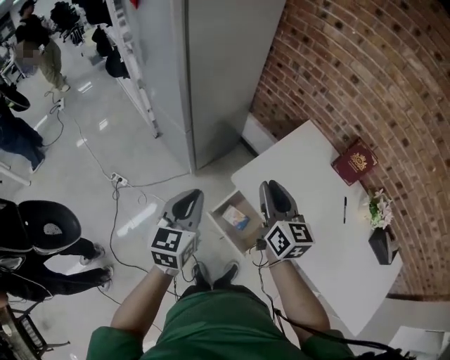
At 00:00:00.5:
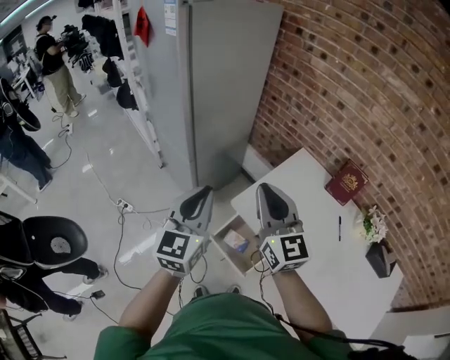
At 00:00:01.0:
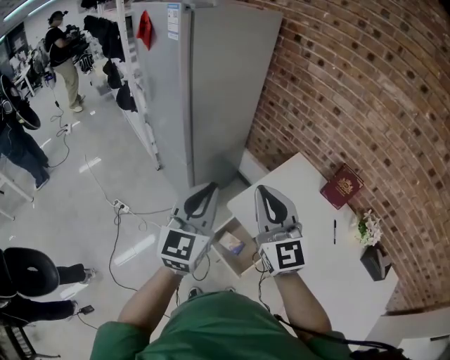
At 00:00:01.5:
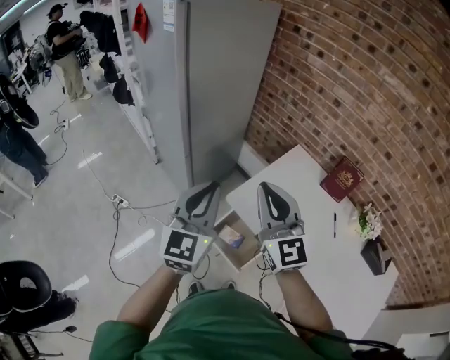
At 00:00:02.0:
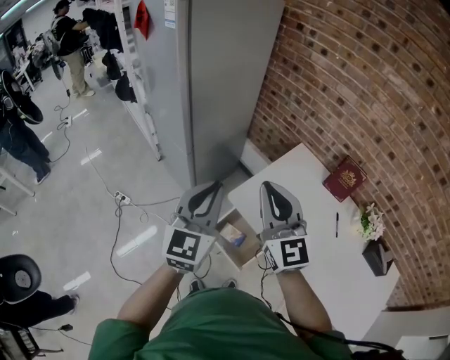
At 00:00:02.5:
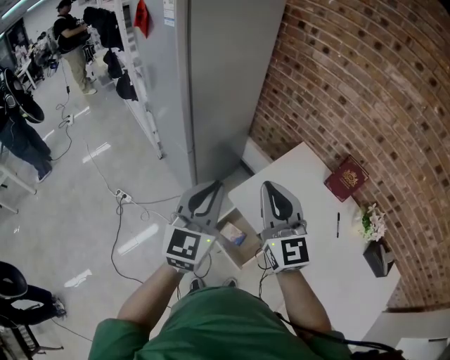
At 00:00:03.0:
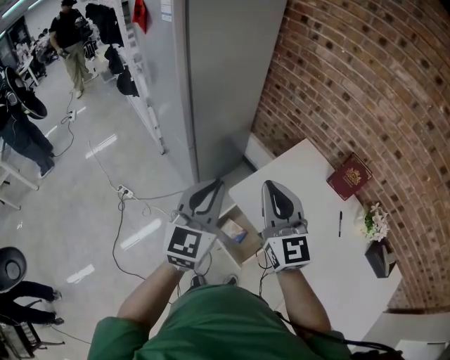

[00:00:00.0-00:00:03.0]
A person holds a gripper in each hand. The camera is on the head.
00:00:00.0 to 00:00:01.5: Both grippers travel together upward, approximately 15 cm. The right gripper turns by some 40 degrees; the left gripper rotates roughly 20 degrees.
00:00:01.5 to 00:00:03.0: The grippers stay close to where they were, moving slightly.

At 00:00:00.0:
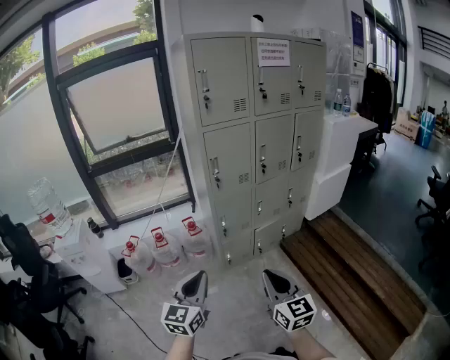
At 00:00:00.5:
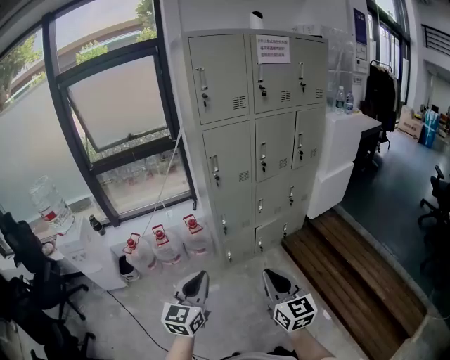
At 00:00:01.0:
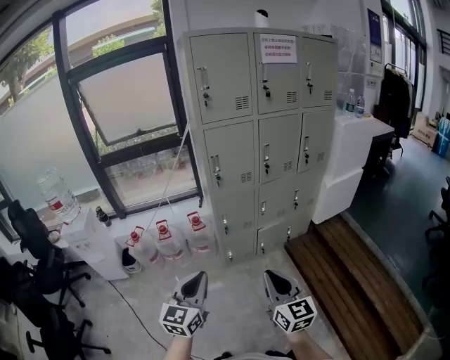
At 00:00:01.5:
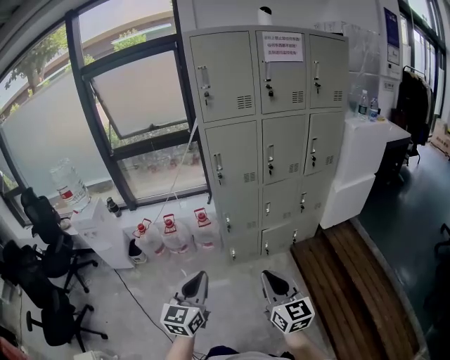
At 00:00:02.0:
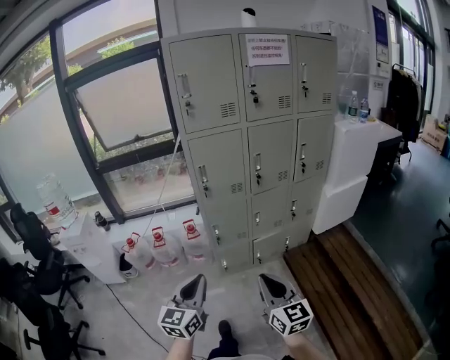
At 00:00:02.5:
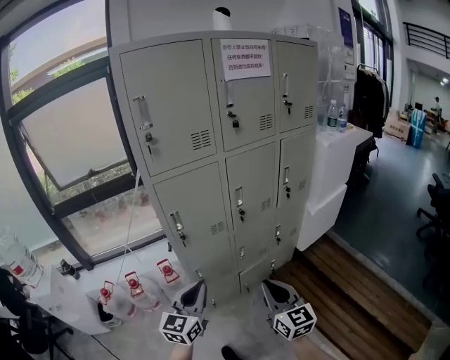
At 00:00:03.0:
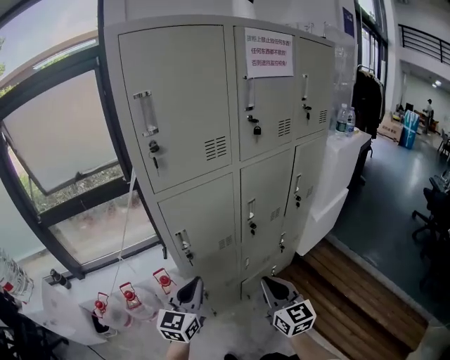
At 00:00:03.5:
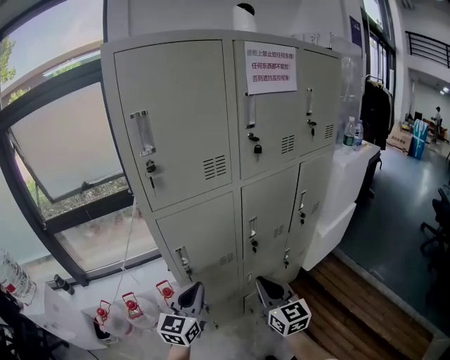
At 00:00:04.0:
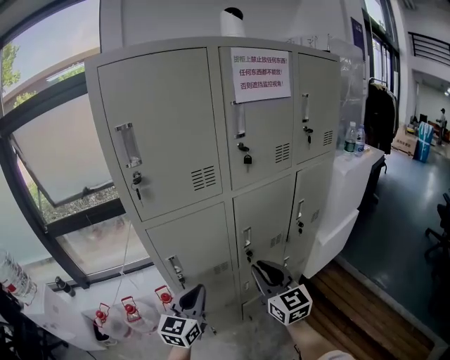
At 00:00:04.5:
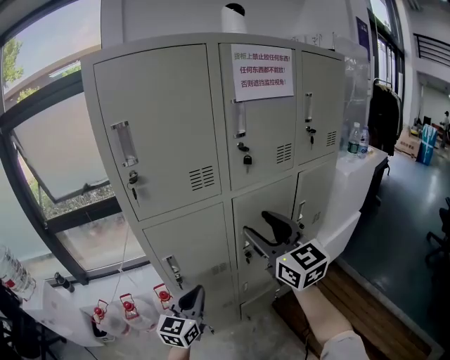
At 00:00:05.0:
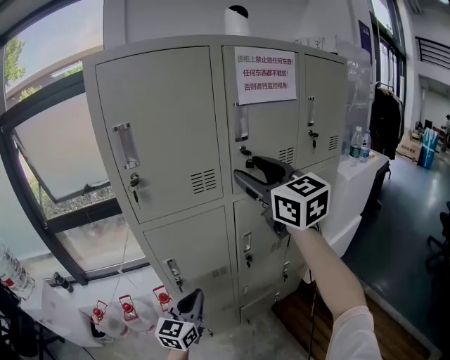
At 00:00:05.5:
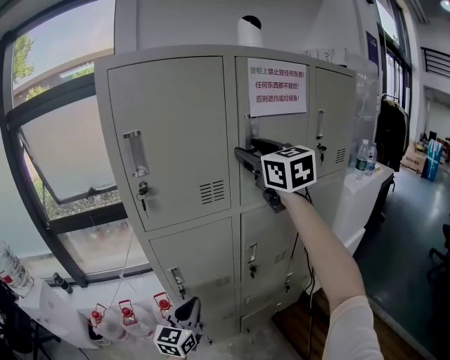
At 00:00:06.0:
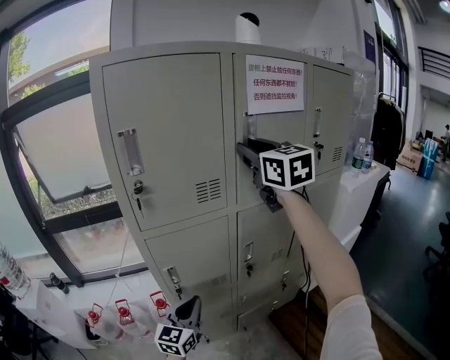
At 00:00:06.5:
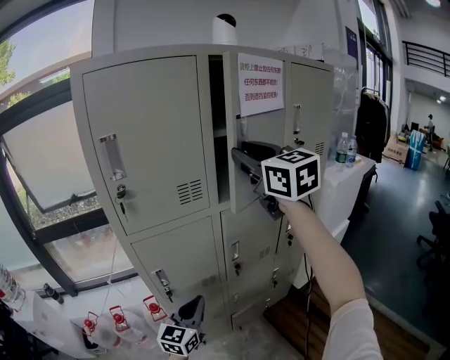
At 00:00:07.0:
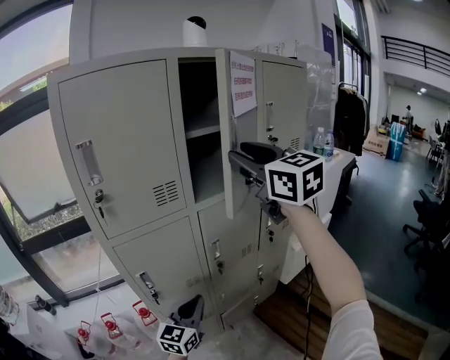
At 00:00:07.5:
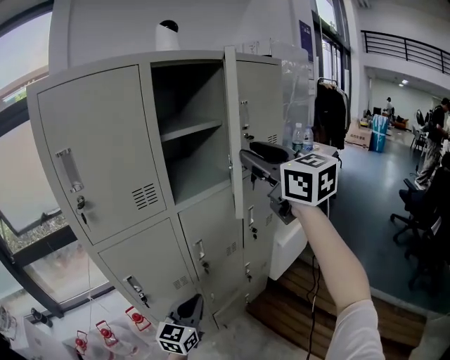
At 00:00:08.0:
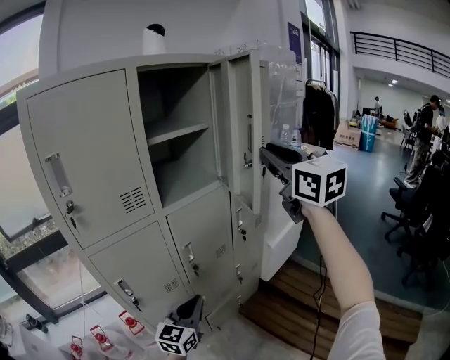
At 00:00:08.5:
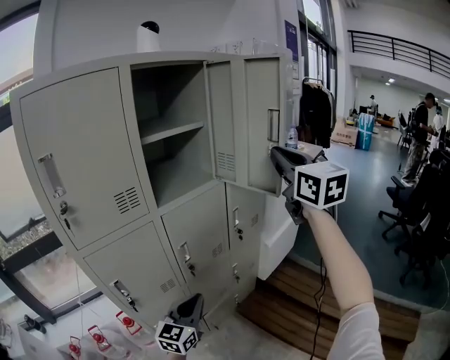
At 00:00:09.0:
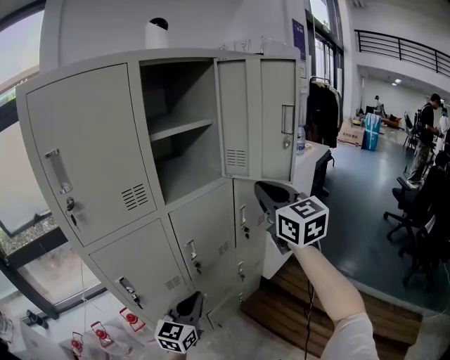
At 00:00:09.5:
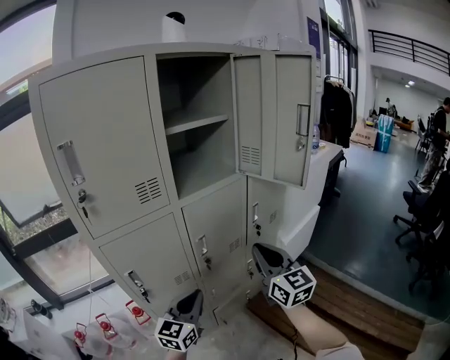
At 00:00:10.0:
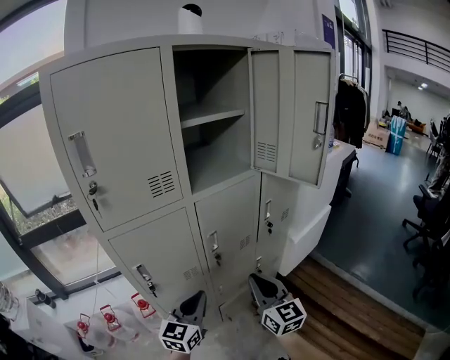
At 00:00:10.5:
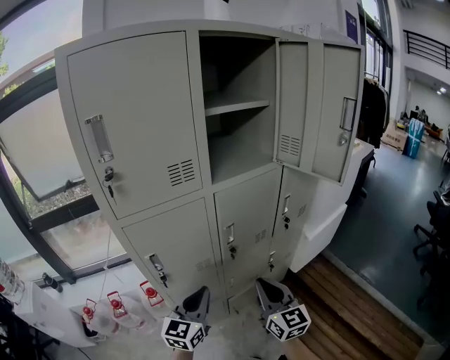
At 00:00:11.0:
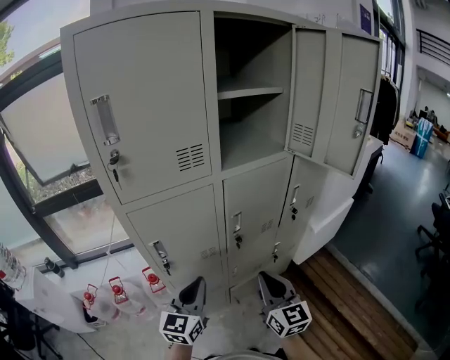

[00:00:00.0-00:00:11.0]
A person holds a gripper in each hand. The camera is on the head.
00:00:00.0 to 00:00:02.0: The left gripper shifts some 15 cm to the right. The right gripper travels to the right and forward by about 15 cm.
00:00:02.0 to 00:00:03.5: The grippers both shift forward by roughly 40 cm.
00:00:03.5 to 00:00:05.5: The right gripper moves upward and forward, roughly 50 cm, and opens up.
00:00:05.5 to 00:00:07.5: The left gripper travels to the right by approximately 15 cm. Meanwhile the right gripper moves to the right and backward, some 20 cm.
00:00:07.5 to 00:00:09.0: The right gripper goes roughly 10 cm downward, and closes.
00:00:09.0 to 00:00:11.0: The right gripper is displaced downward and to the left by about 30 cm; the left gripper shifts approximately 10 cm to the left.

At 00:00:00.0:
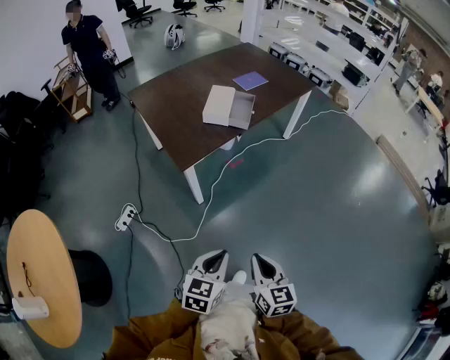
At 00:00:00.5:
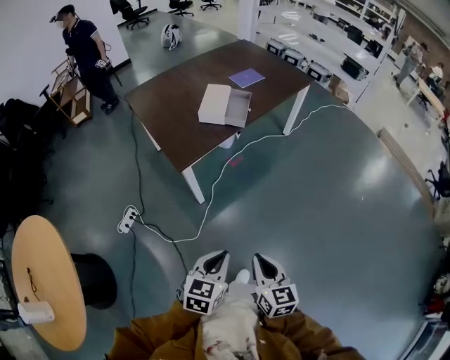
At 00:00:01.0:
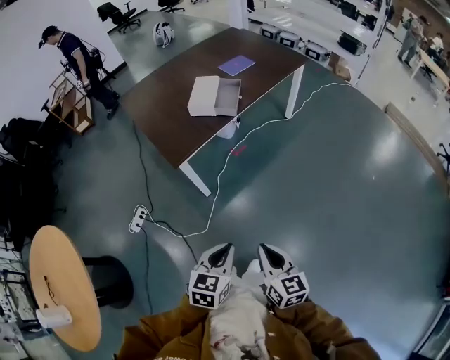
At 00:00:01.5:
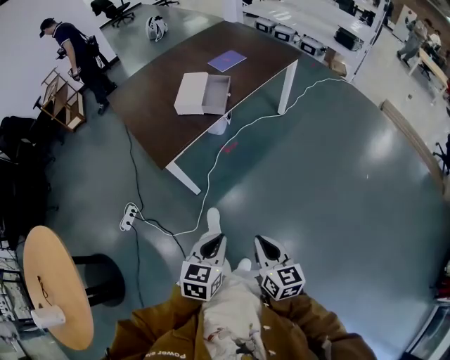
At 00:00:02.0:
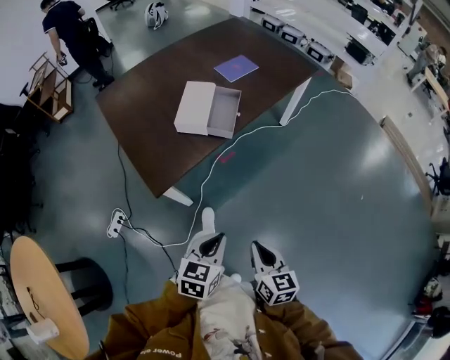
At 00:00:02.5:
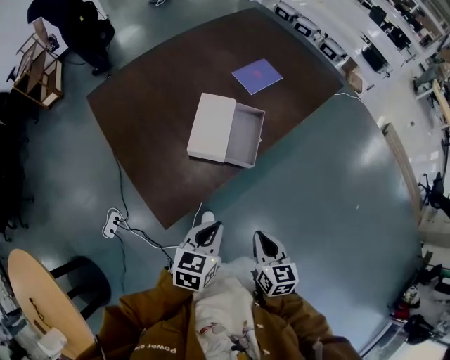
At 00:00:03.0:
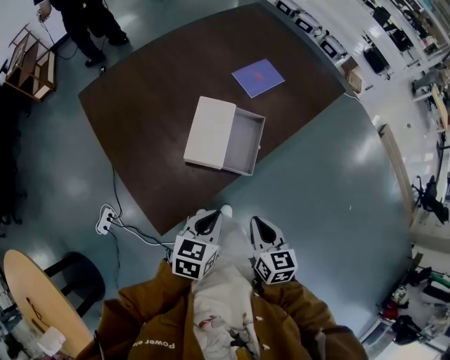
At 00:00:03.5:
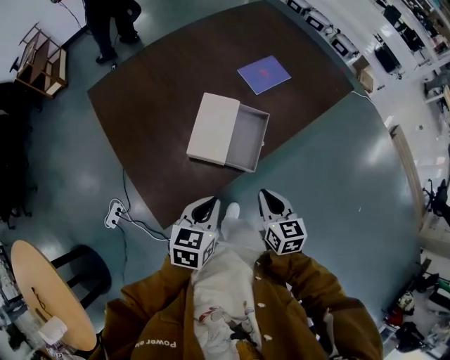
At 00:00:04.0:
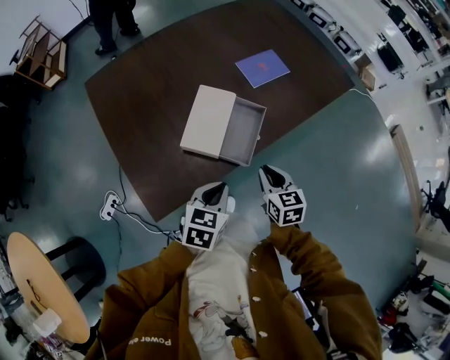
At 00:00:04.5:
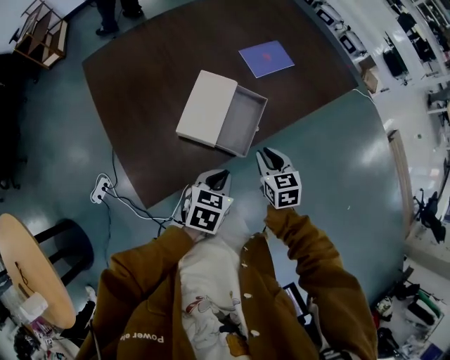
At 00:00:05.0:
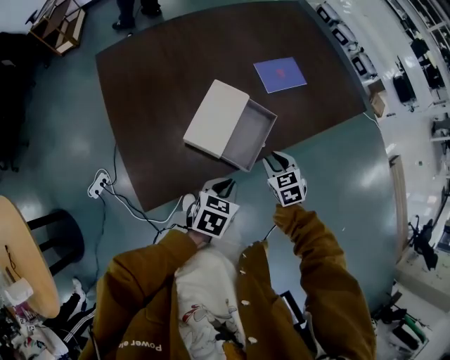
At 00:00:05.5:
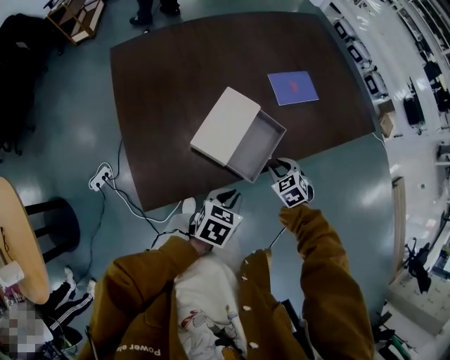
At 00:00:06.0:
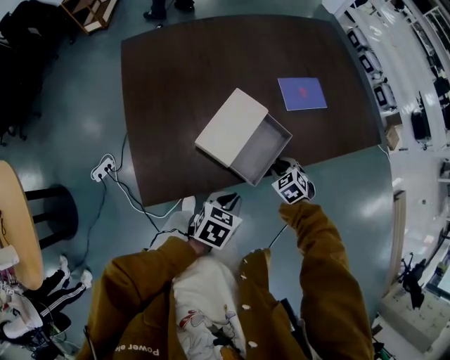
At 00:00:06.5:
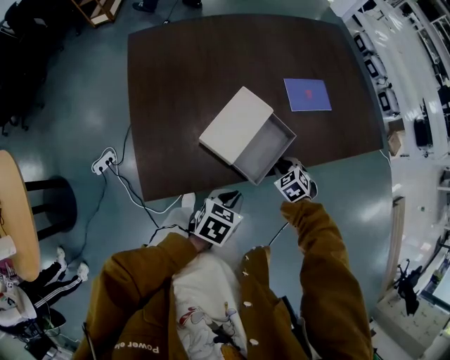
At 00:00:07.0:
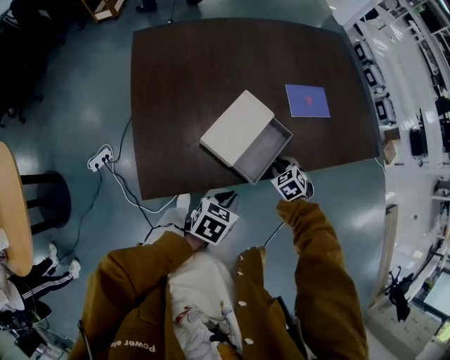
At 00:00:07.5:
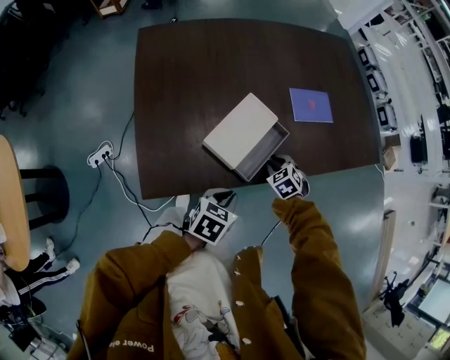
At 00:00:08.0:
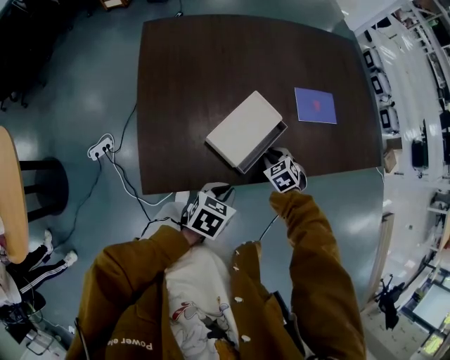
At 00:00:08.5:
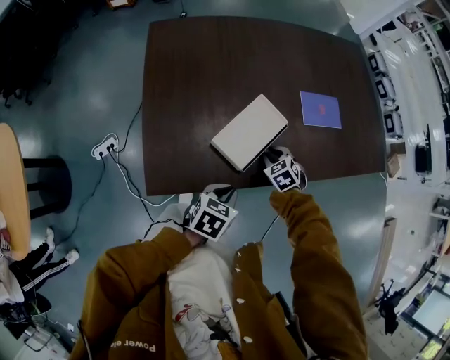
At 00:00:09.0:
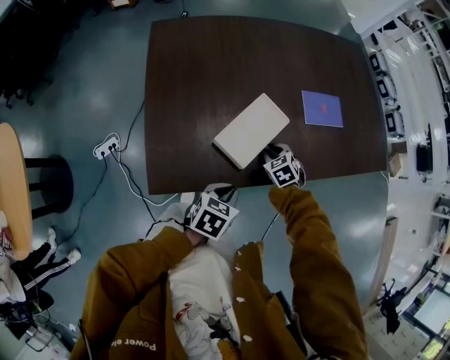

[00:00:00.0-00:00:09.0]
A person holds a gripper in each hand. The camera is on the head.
00:00:00.0 to 00:00:02.0: Both grippers move forward, roughly 25 cm.
00:00:02.0 to 00:00:04.5: Both grippers move forward, roughly 40 cm. The right gripper rotates some 30 degrees.
00:00:04.5 to 00:00:07.0: The right gripper shifts about 15 cm downward and forward, and twists about 40 degrees counterclockwise, seen from behind.
00:00:07.0 to 00:00:09.0: The right gripper shifts roughly 10 cm to the left.

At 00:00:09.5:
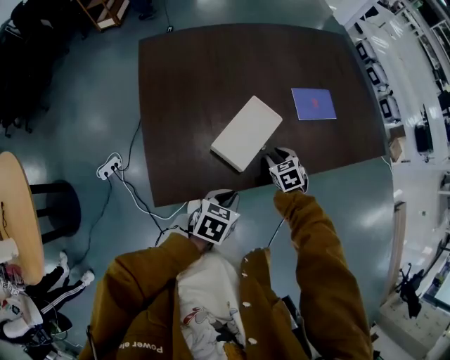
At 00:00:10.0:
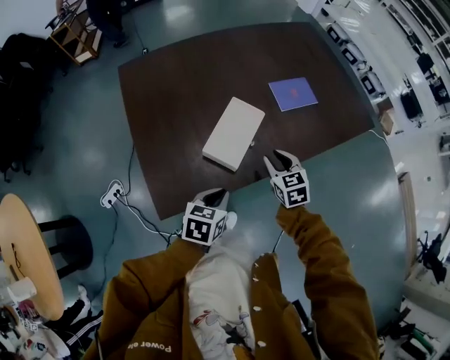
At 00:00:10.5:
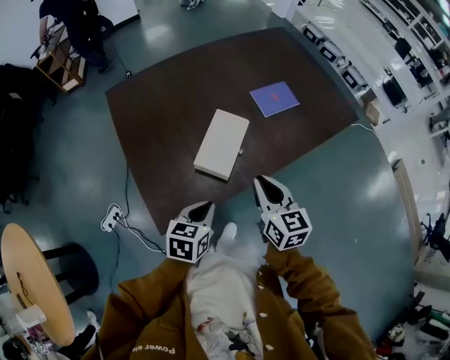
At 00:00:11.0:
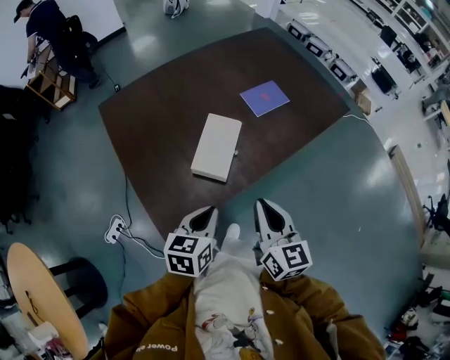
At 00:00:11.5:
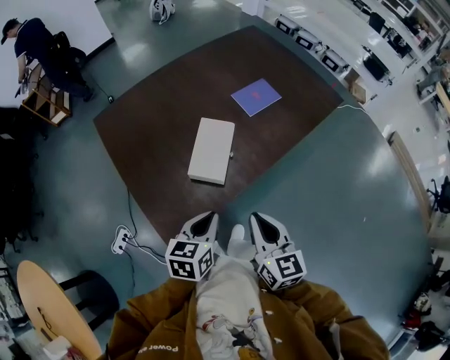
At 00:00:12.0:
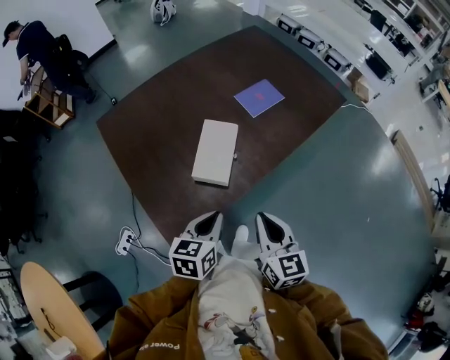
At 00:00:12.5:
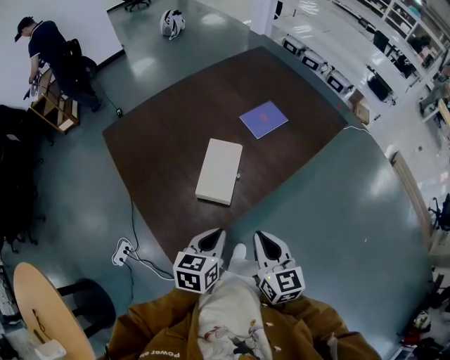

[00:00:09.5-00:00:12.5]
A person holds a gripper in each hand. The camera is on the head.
00:00:09.5 to 00:00:11.0: The left gripper travels upward by some 15 cm. The right gripper is displaced upward and backward by some 35 cm, points its fingers about 40 degrees further upward, and closes up.
00:00:11.0 to 00:00:12.5: There are only small adjustments of the grippers.
